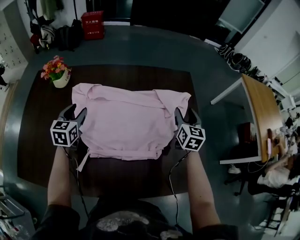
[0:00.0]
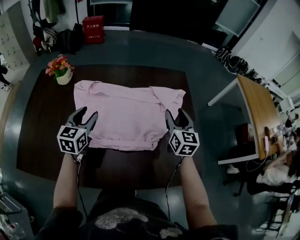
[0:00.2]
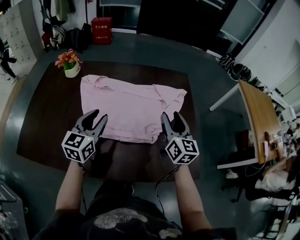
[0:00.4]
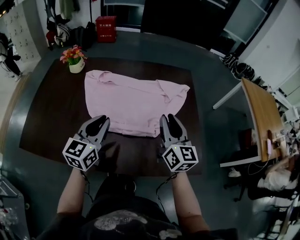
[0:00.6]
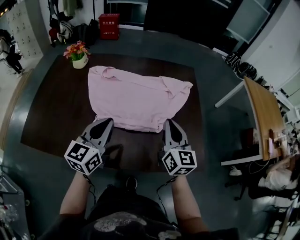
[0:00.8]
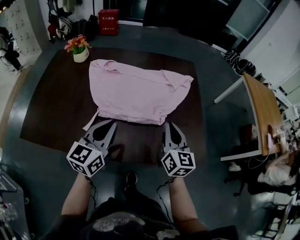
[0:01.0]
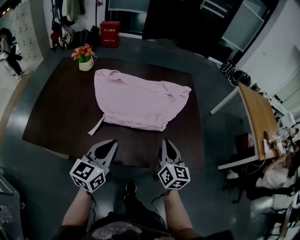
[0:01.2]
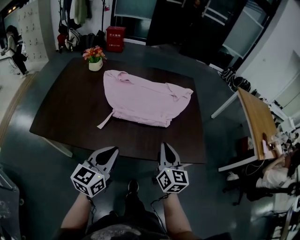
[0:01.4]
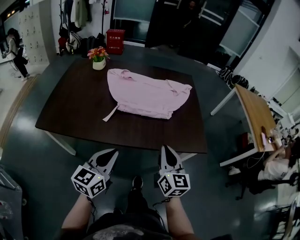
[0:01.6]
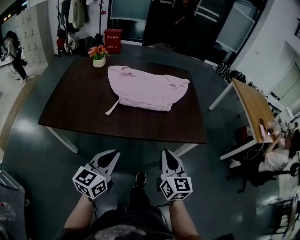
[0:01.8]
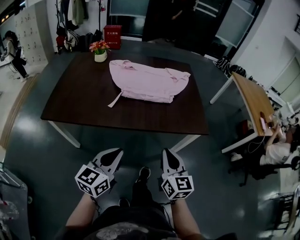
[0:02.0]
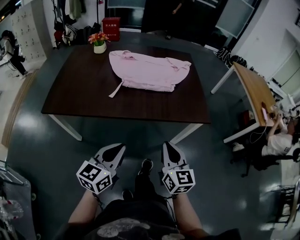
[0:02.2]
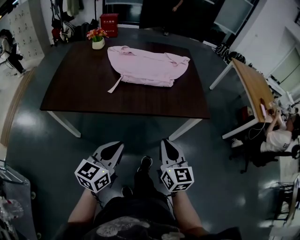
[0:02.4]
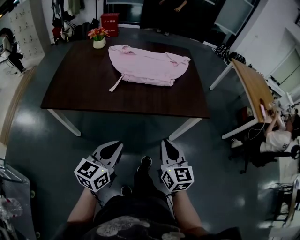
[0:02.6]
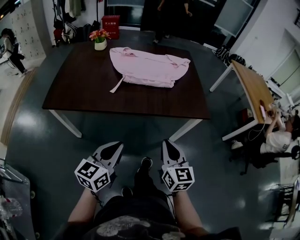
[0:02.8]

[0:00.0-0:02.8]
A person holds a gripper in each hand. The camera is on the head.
0:00.0 to 0:01.4: The pair of grippers is taken backward, roughly 40 cm. The left gripper rotates about 30 degrees, and closes; the right gripper swivels about 20 degrees, and closes up.
0:01.4 to 0:02.8: Both grippers travel together backward, approximately 25 cm.

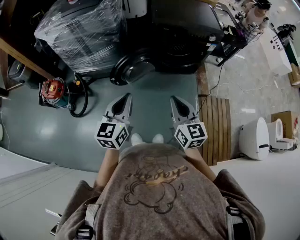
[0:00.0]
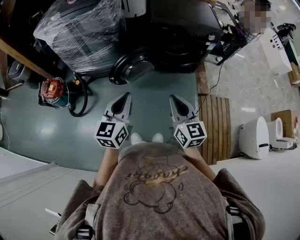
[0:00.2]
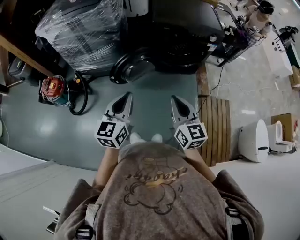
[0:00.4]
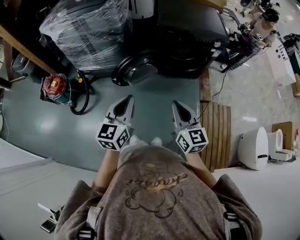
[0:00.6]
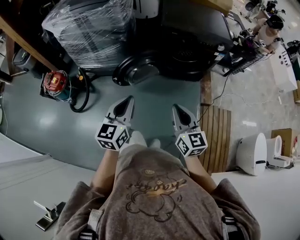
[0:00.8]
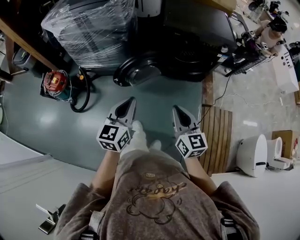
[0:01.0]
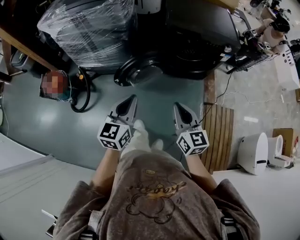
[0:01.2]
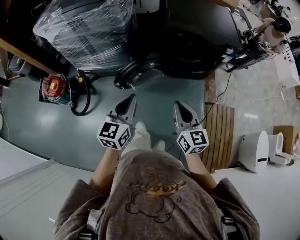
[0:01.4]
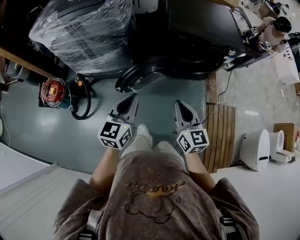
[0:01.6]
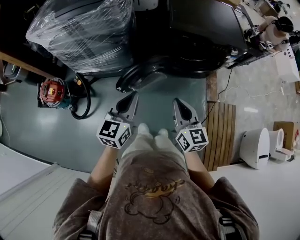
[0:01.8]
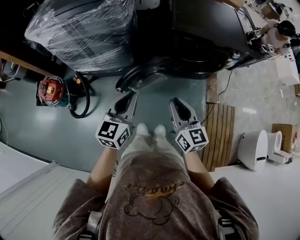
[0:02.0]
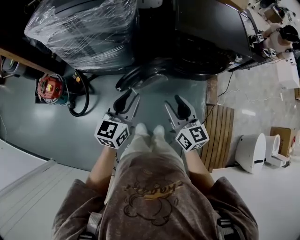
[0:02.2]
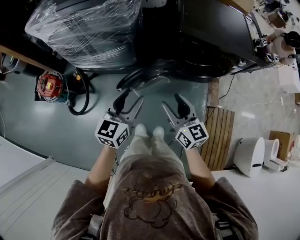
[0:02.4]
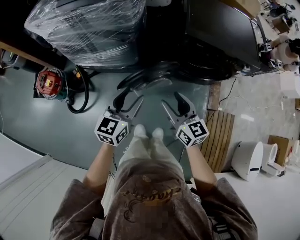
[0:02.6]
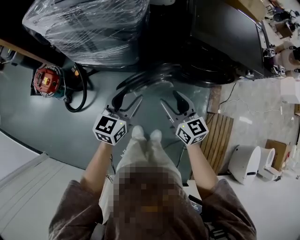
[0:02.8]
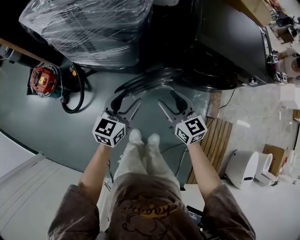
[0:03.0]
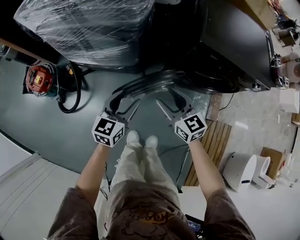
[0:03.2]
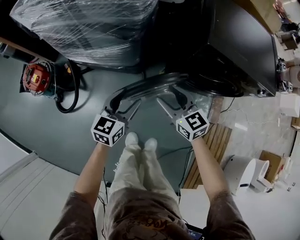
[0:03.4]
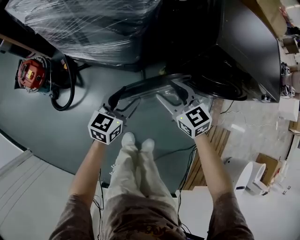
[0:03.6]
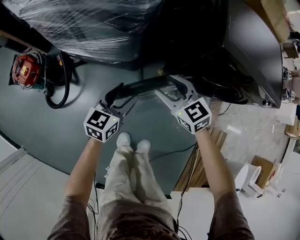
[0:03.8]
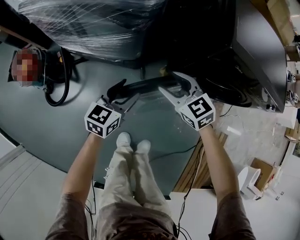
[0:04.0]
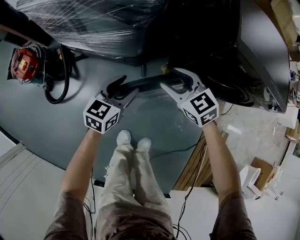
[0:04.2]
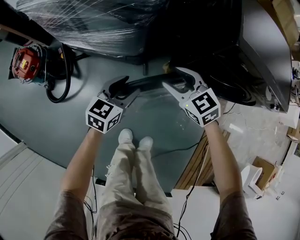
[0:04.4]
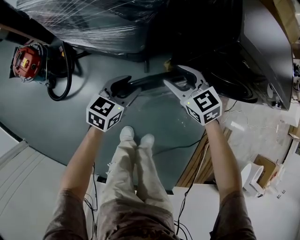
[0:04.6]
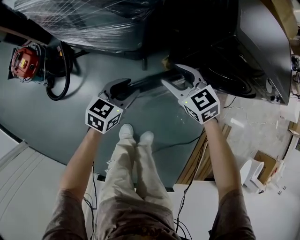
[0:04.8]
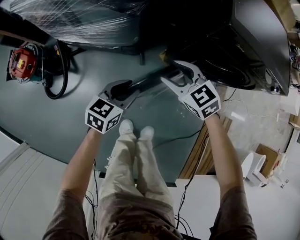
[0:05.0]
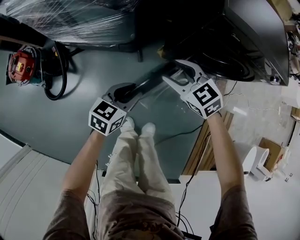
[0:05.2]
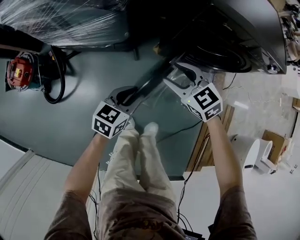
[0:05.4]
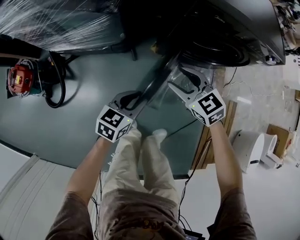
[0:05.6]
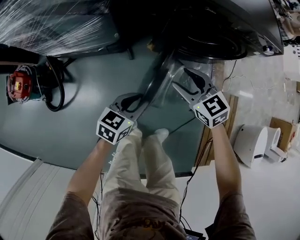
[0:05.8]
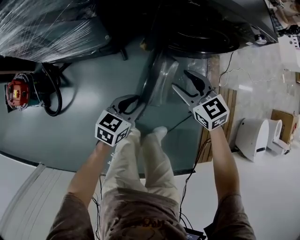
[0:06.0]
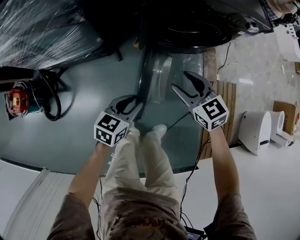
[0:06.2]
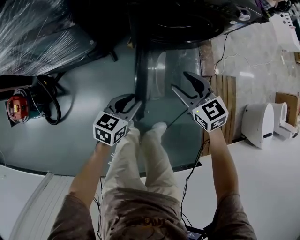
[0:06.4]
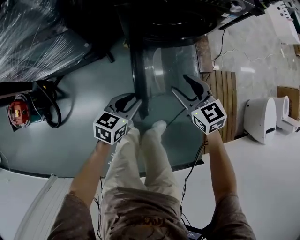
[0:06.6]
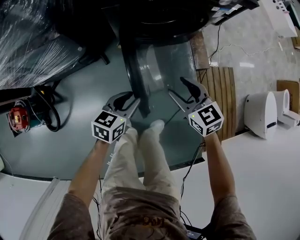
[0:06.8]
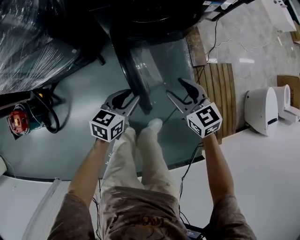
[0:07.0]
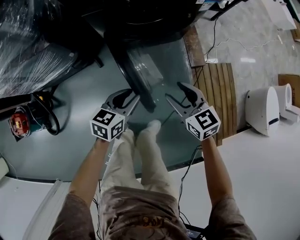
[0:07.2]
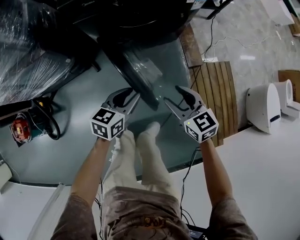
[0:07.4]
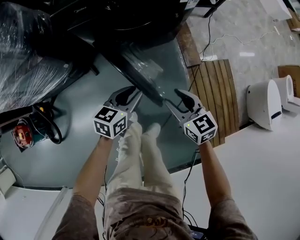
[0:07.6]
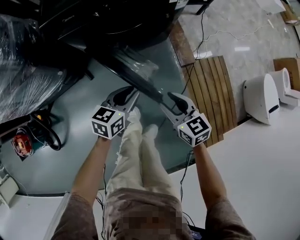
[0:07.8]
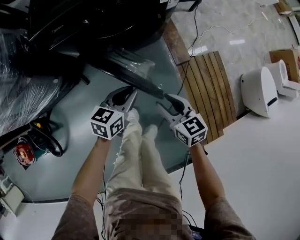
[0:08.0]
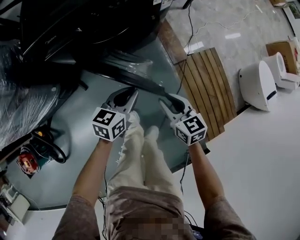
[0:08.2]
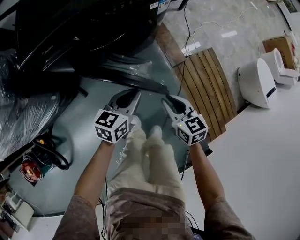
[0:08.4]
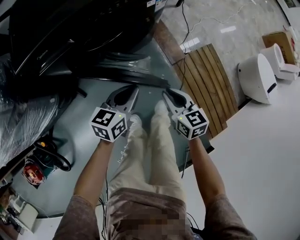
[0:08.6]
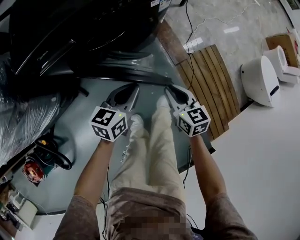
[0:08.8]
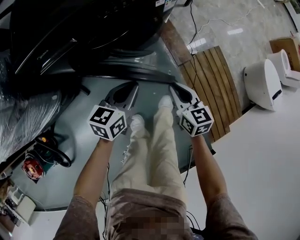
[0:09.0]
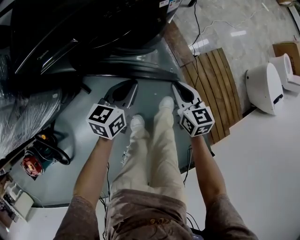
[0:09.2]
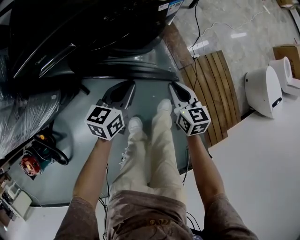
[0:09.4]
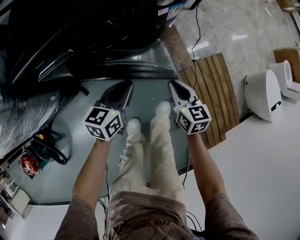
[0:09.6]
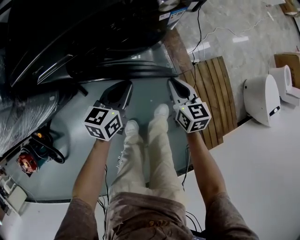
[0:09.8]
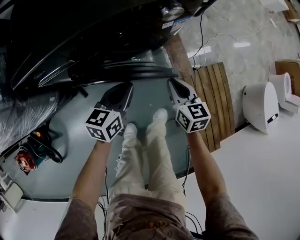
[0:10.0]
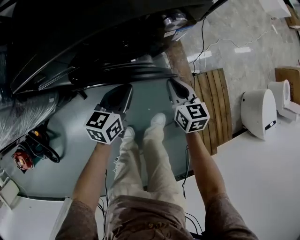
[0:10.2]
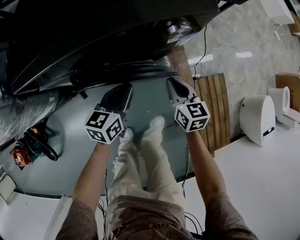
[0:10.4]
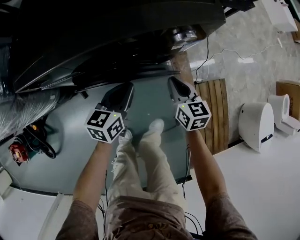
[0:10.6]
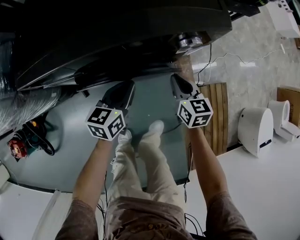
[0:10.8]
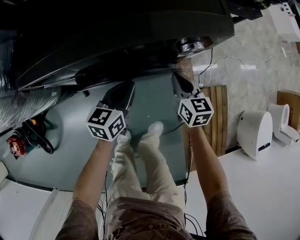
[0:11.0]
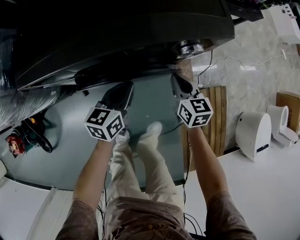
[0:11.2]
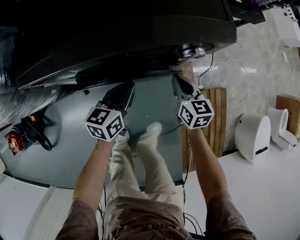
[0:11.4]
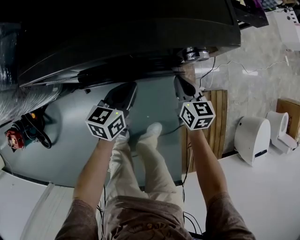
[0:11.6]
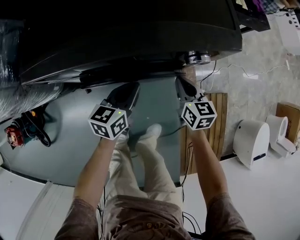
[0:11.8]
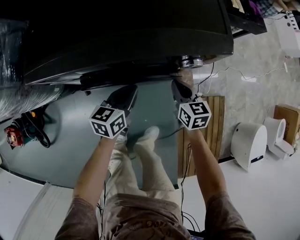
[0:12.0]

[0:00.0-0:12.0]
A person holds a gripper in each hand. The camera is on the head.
0:00.0 to 0:01.6: Both grippers travel together forward, roughly 15 cm.
0:01.6 to 0:03.0: The right gripper travels forward, downward and to the left by about 25 cm, swivels roughly 30 degrees, and opens up. Meanwhile the left gripper is displaced forward and downward by approximately 20 cm, and opens up.
0:03.0 to 0:04.4: Both grippers move downward and forward, about 20 cm. The right gripper swivels about 30 degrees.
0:04.4 to 0:06.0: The right gripper goes some 25 cm to the right and backward, and swivels about 20 degrees, while the left gripper is displaced backward and to the right by about 25 cm, changes its angle by approximately 20 degrees, and closes up.
0:06.0 to 0:07.6: The grippers both shift to the right by some 25 cm. The right gripper rotates some 30 degrees.
0:07.6 to 0:09.0: The right gripper moves forward and downward, roughly 15 cm, changes its angle by some 20 degrees, and closes, while the left gripper shifts about 15 cm forward, and closes.
0:09.0 to 0:10.4: Both grippers move forward, about 15 cm.
0:10.4 to 0:12.0: The right gripper is displaced forward by roughly 5 cm.

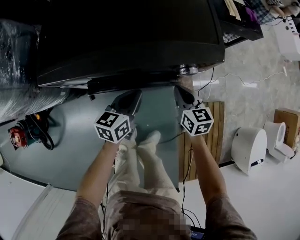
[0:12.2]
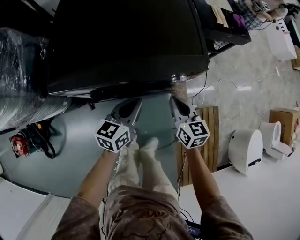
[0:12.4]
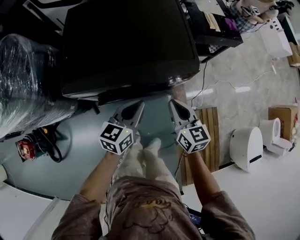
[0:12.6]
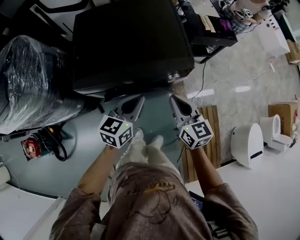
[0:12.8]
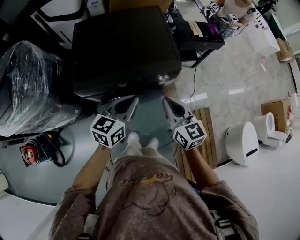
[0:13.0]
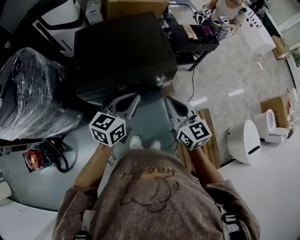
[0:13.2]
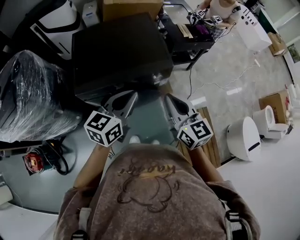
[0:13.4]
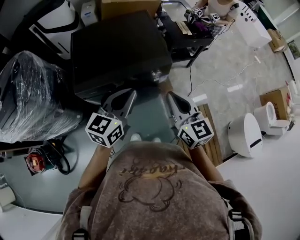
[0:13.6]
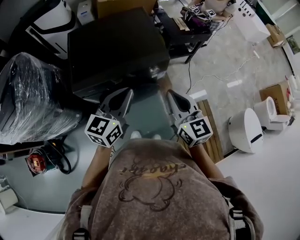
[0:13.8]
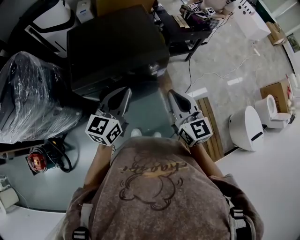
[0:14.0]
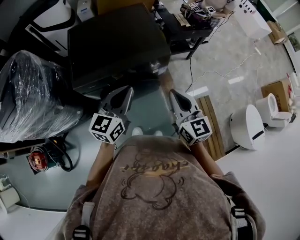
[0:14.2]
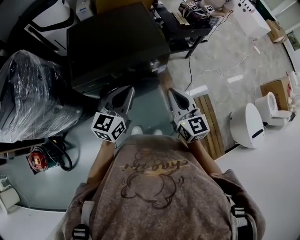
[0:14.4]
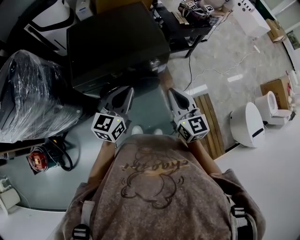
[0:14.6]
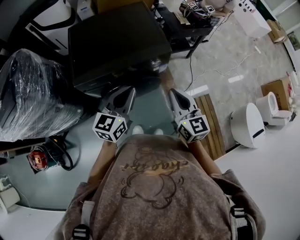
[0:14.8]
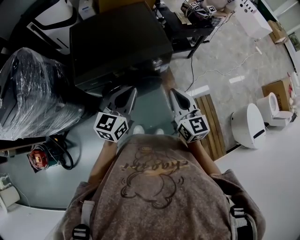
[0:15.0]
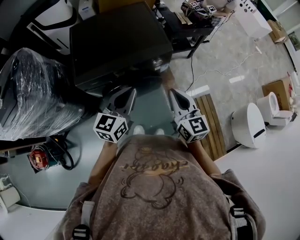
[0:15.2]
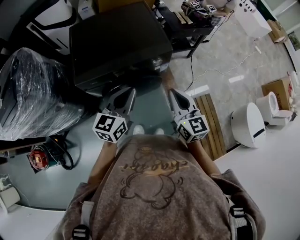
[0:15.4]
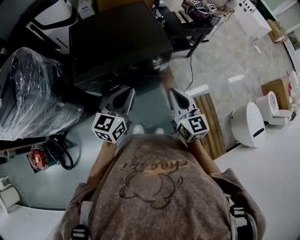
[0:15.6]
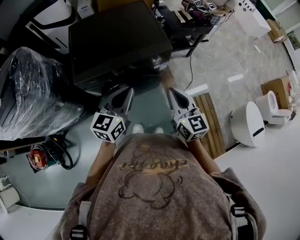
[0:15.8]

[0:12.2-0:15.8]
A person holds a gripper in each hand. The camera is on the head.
0:12.2 to 0:14.0: The right gripper heads upward and backward, covering some 40 cm, and turns by some 30 degrees; the left gripper travels upward by approximately 35 cm, and swivels roughly 30 degrees.
0:14.0 to 0:15.8: The grippers make only small movements.

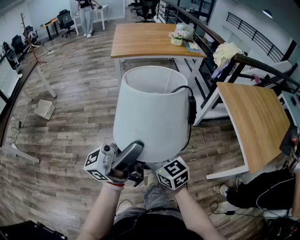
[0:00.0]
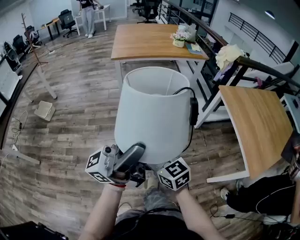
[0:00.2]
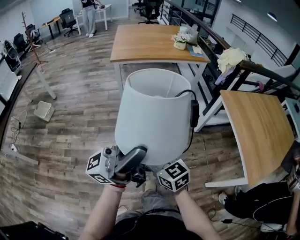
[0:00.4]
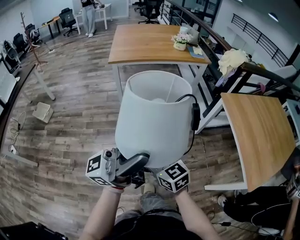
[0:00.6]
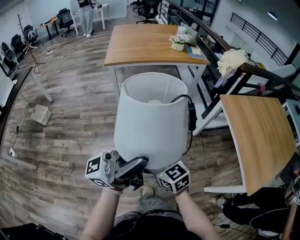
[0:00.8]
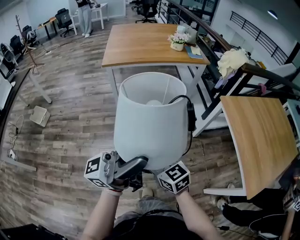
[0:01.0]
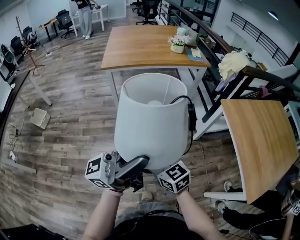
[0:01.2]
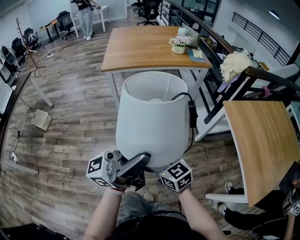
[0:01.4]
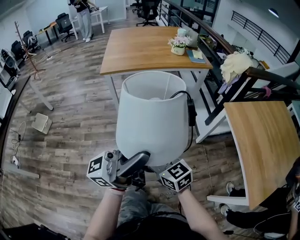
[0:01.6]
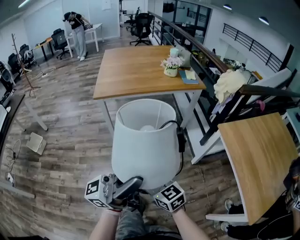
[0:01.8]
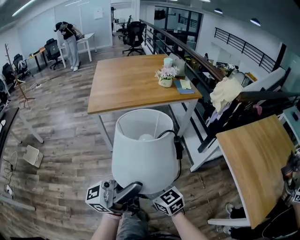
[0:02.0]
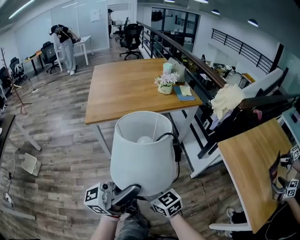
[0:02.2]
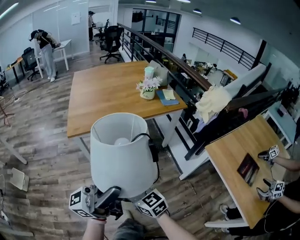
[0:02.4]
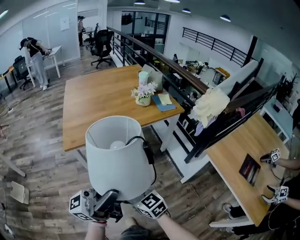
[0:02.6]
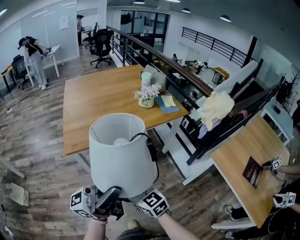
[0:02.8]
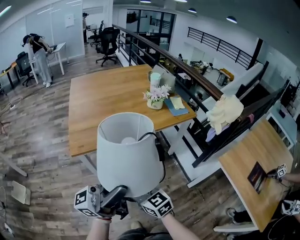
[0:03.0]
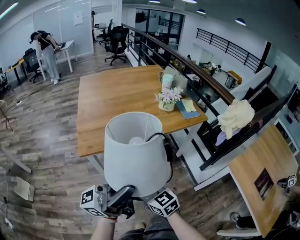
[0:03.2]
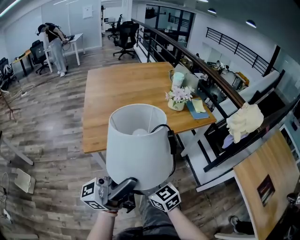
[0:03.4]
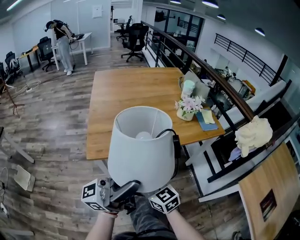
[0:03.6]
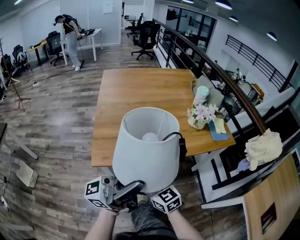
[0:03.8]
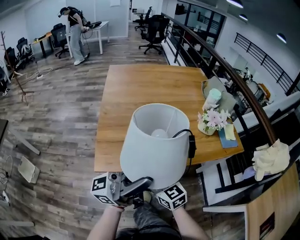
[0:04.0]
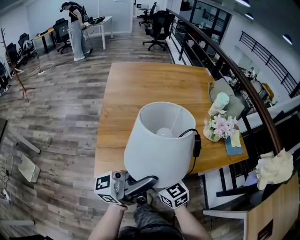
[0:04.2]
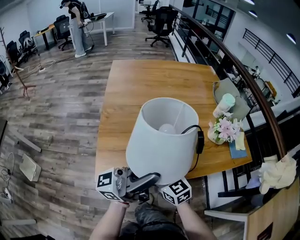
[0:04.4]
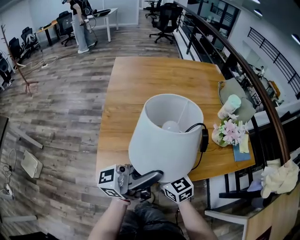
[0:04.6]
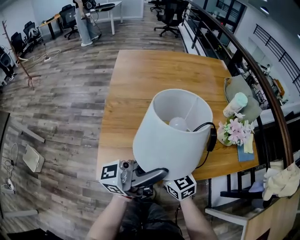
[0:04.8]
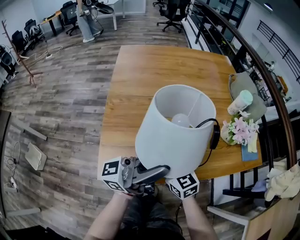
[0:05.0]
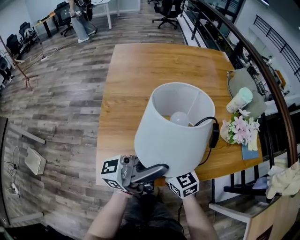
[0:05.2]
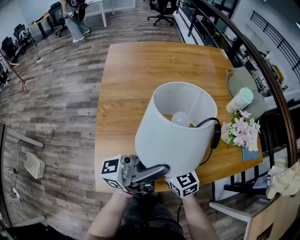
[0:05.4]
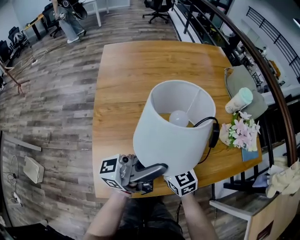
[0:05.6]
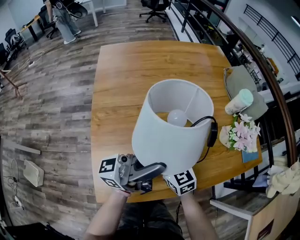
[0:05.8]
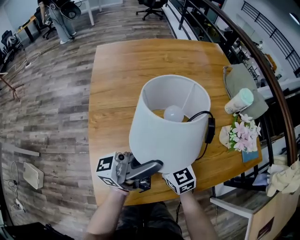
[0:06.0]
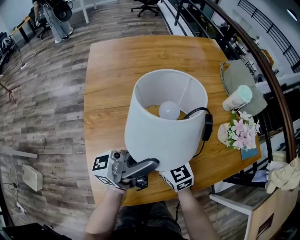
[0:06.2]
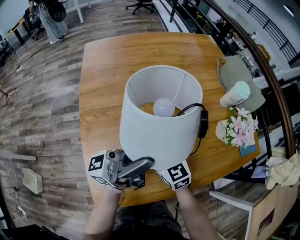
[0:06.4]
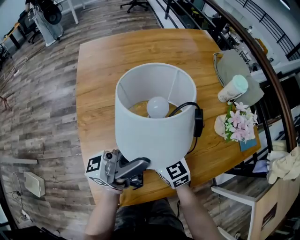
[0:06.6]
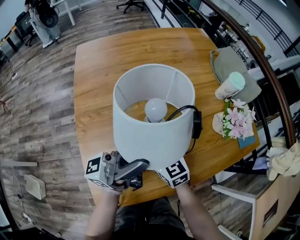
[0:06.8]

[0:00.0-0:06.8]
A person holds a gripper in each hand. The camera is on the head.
0:00.0 to 0:01.4: Both grippers move forward, approximately 20 cm.
0:01.4 to 0:02.8: Both grippers move forward and to the left, about 35 cm.
0:02.8 to 0:04.0: The two grippers go approximately 30 cm forward and to the left.
0:04.0 to 0:05.4: Both grippers move forward, approximately 20 cm.
0:05.4 to 0:06.8: The grippers both shift forward by approximately 5 cm.
